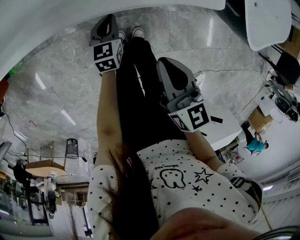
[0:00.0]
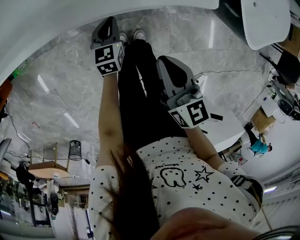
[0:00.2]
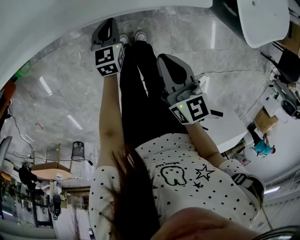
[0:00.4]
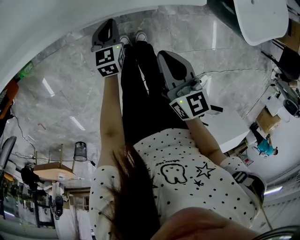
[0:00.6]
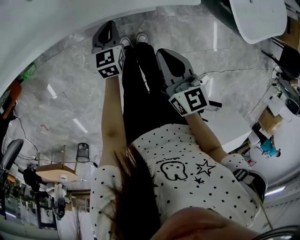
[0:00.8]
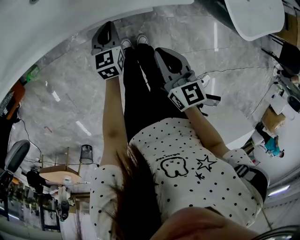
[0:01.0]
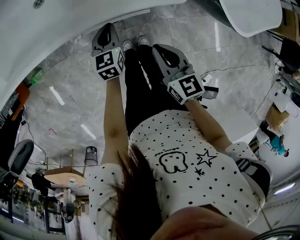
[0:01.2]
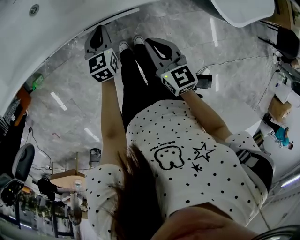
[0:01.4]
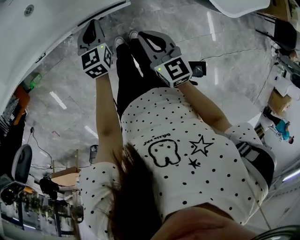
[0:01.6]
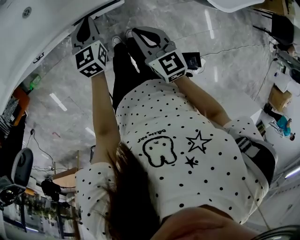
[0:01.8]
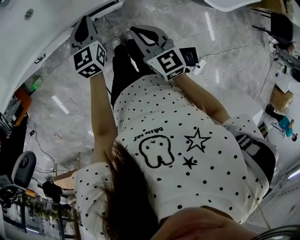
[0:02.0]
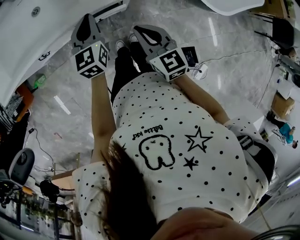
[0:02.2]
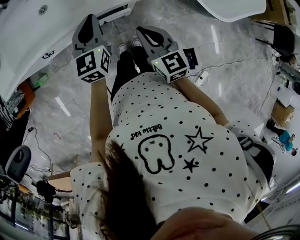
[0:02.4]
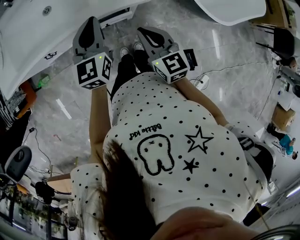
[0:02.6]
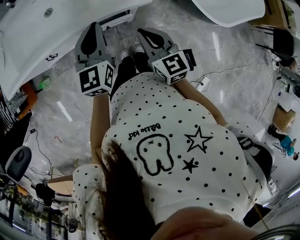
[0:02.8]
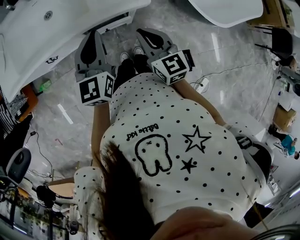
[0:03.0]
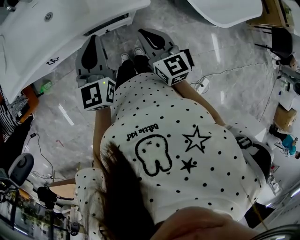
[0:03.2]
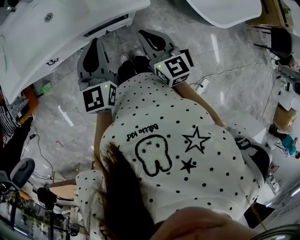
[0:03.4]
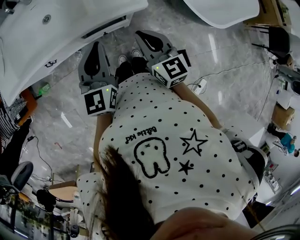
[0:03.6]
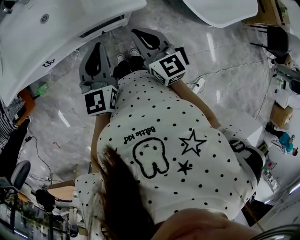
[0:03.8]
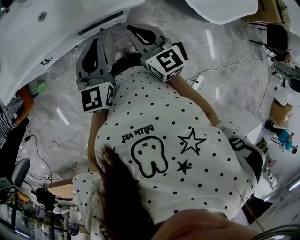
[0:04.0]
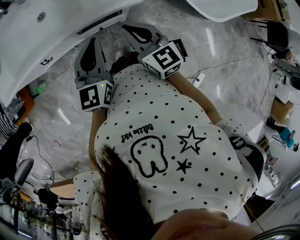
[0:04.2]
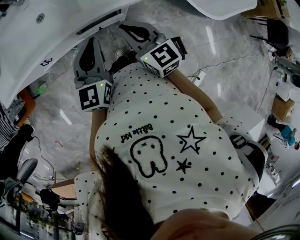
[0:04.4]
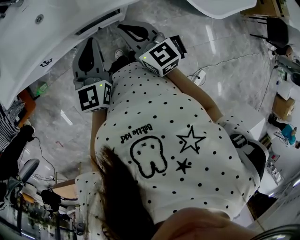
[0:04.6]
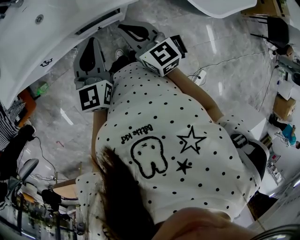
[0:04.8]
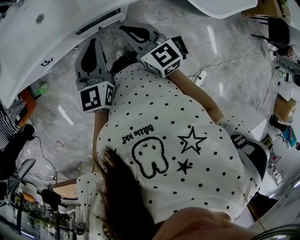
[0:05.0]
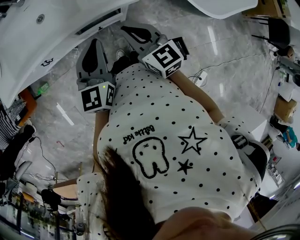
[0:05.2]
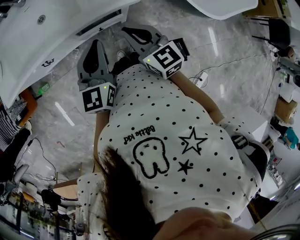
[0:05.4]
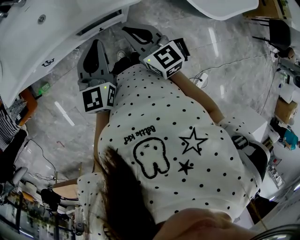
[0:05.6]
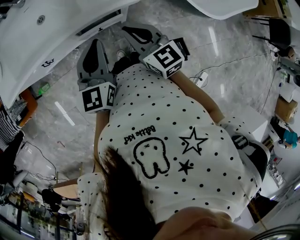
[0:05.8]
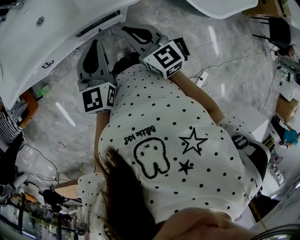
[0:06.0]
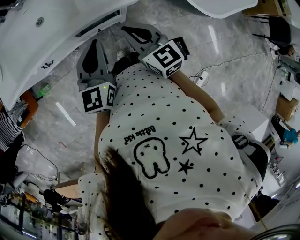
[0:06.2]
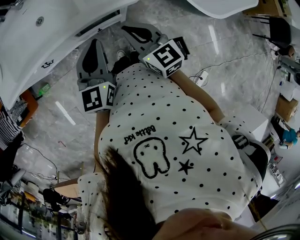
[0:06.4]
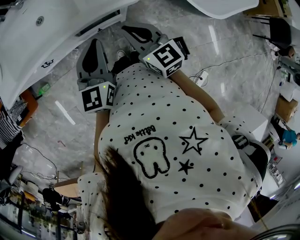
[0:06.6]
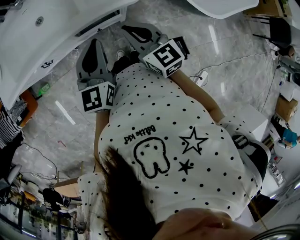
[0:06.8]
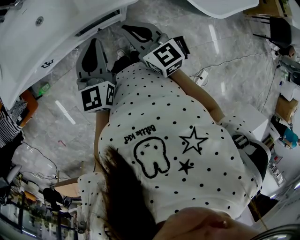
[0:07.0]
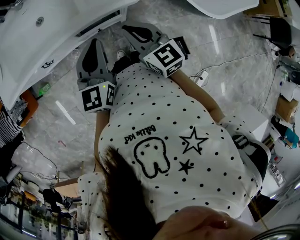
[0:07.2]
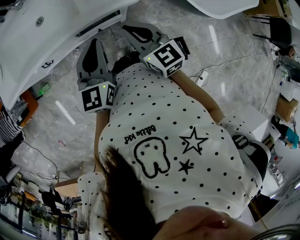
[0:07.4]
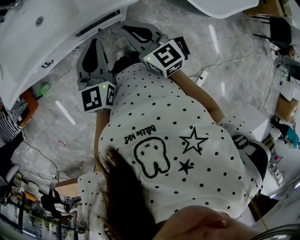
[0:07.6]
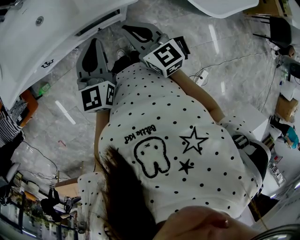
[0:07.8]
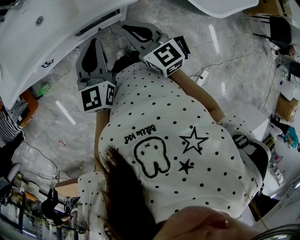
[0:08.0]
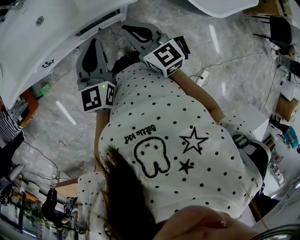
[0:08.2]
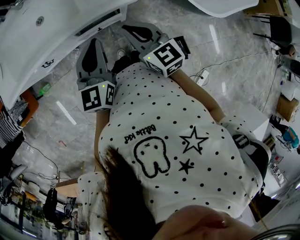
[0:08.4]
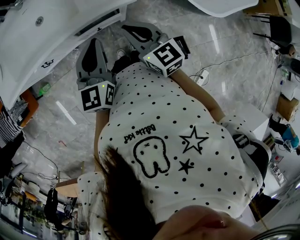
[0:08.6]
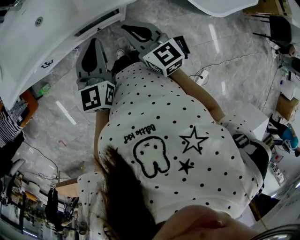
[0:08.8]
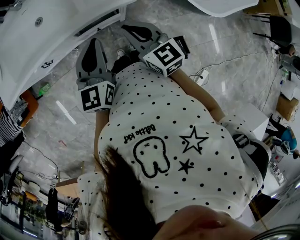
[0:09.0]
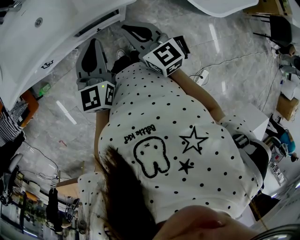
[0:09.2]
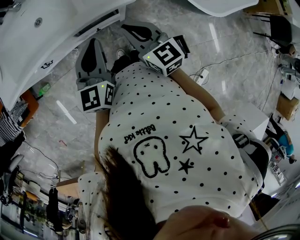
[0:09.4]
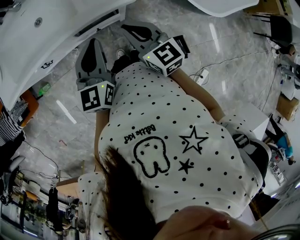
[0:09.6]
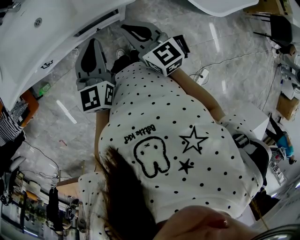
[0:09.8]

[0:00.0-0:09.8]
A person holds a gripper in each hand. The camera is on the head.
0:00.0 to 0:01.4: The left gripper goes approximately 20 cm upward. Meanwhile the right gripper travels upward by some 5 cm.
0:01.4 to 0:02.8: The left gripper is displaced upward by some 25 cm, and swivels some 20 degrees. The right gripper is displaced upward by approximately 10 cm.
0:02.8 to 0:04.2: The grippers make only small movements.
0:04.2 to 0:09.8: Both grippers stay about where they are.

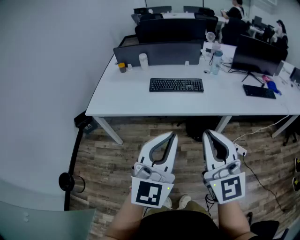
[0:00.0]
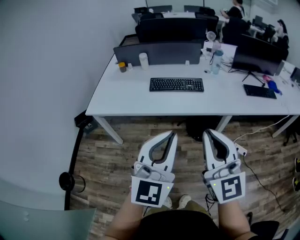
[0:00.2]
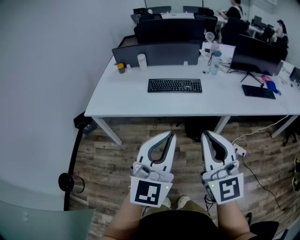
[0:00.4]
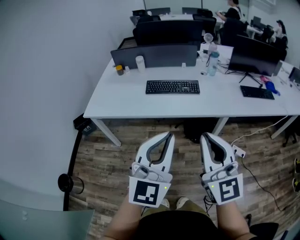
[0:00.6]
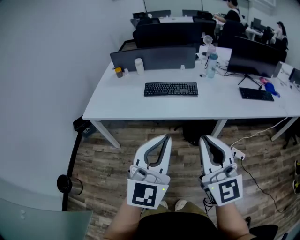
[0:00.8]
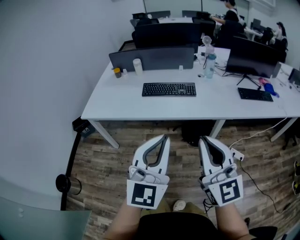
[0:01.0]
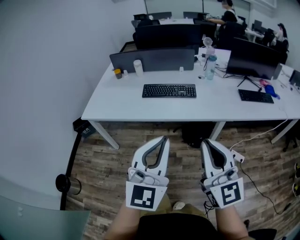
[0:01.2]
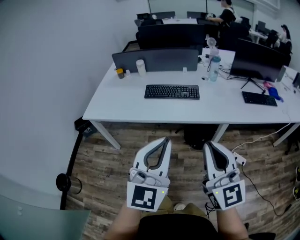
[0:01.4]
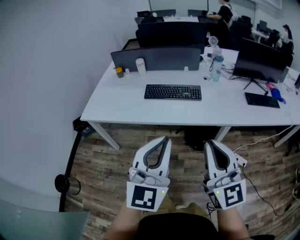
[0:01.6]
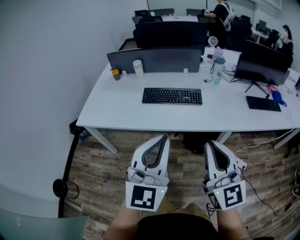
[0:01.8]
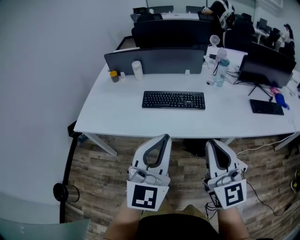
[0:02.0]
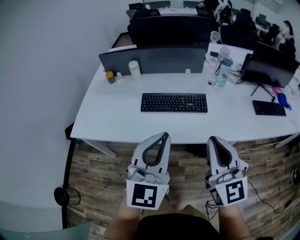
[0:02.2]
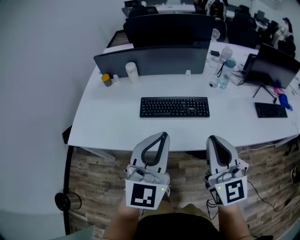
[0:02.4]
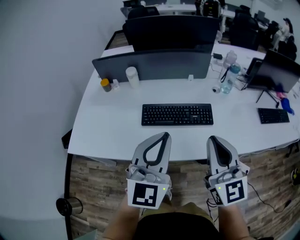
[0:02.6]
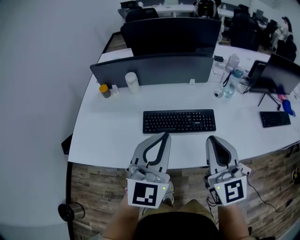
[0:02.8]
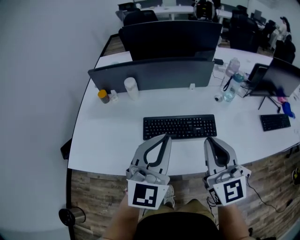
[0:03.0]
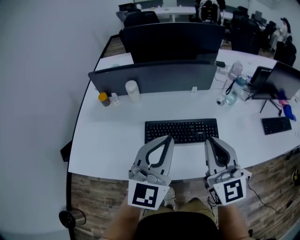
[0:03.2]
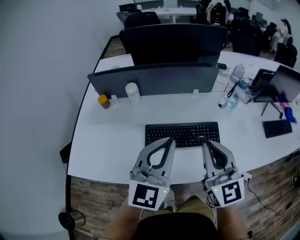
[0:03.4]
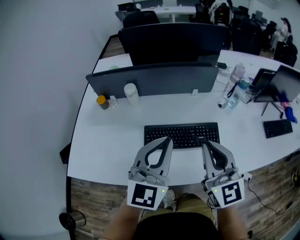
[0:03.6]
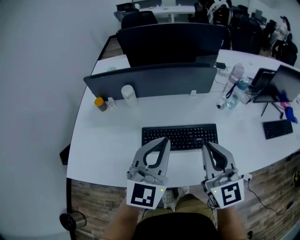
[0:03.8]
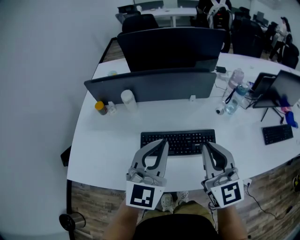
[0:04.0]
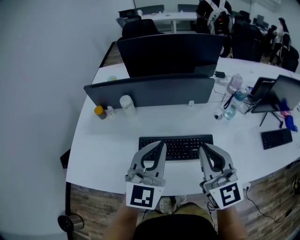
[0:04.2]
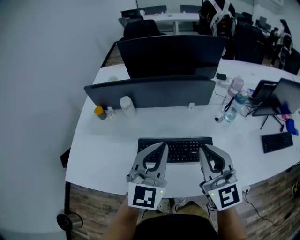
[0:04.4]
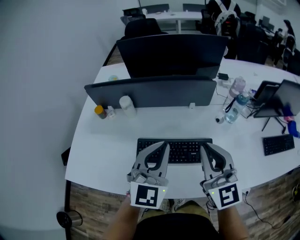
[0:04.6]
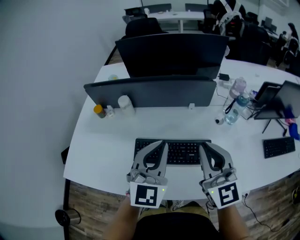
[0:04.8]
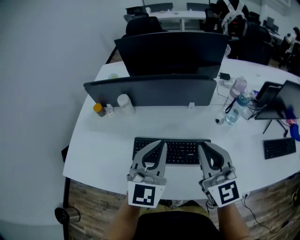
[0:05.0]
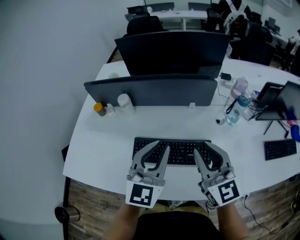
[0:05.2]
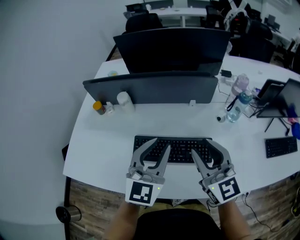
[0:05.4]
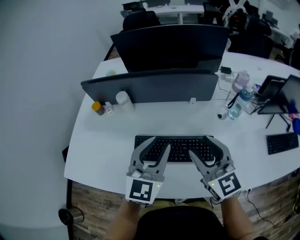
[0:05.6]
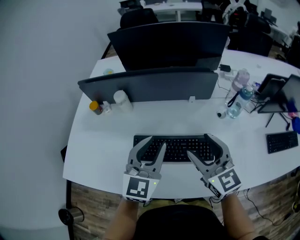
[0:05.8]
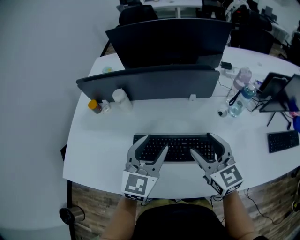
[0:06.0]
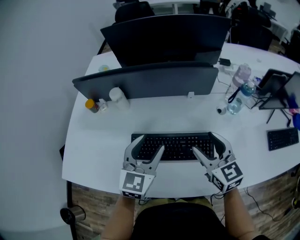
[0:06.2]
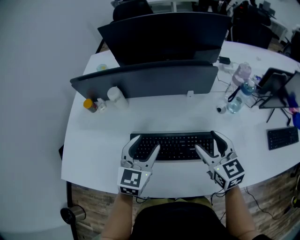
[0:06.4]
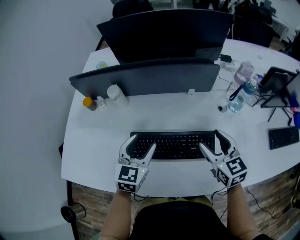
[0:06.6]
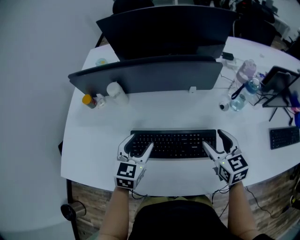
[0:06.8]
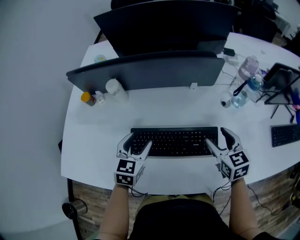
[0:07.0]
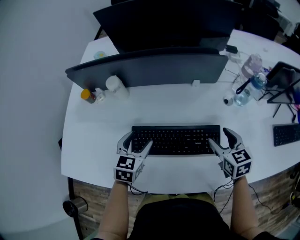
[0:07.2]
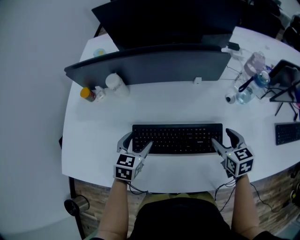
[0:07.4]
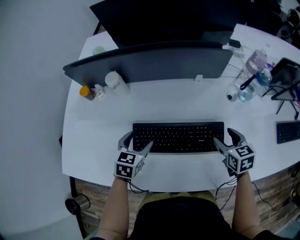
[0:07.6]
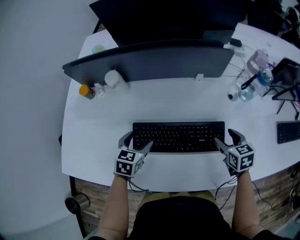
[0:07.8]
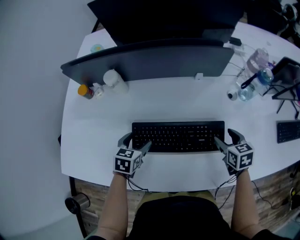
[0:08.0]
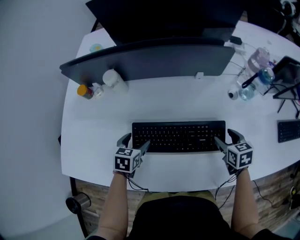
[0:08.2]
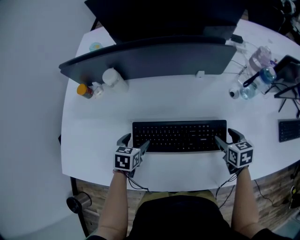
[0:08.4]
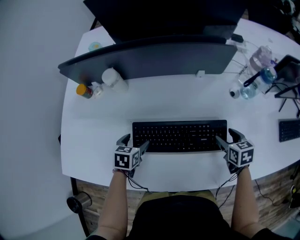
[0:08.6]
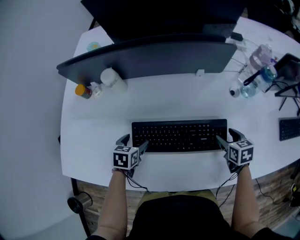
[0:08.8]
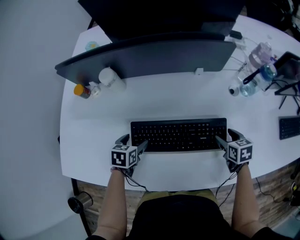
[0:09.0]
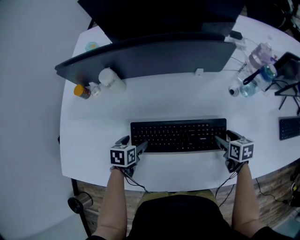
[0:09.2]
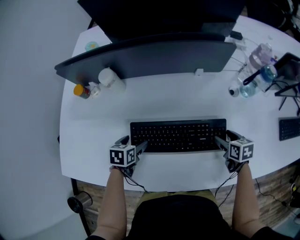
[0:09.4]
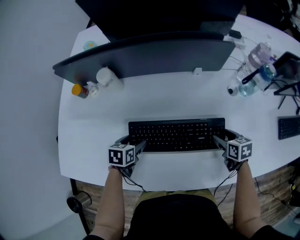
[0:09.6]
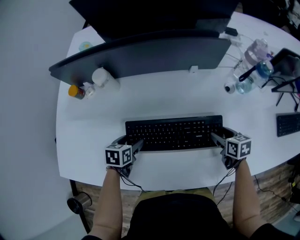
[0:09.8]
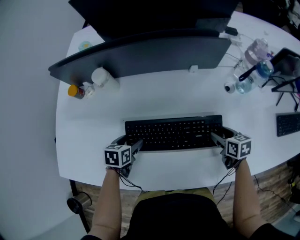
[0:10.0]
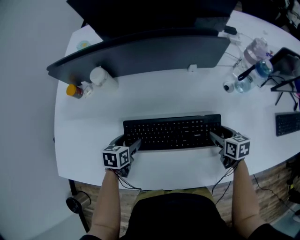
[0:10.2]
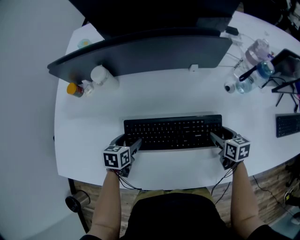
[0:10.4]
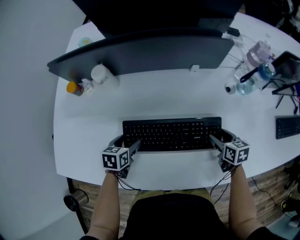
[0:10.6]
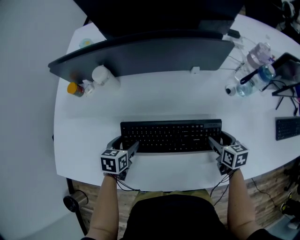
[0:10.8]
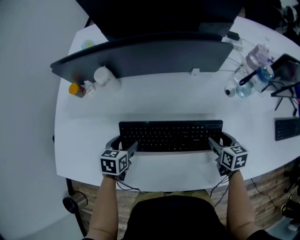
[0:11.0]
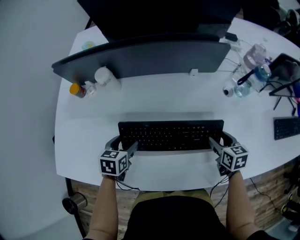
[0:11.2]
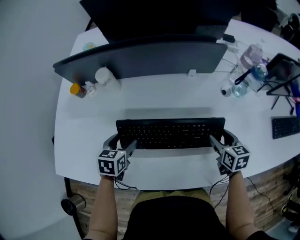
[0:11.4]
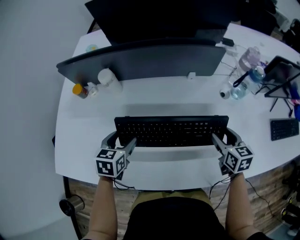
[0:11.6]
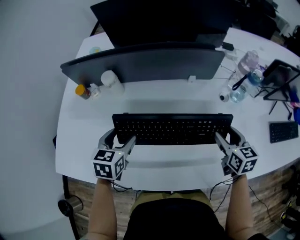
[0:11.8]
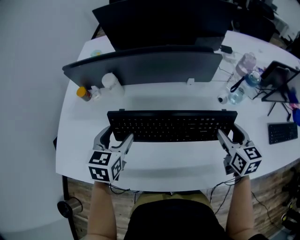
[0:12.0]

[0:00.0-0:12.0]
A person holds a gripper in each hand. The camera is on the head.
0:00.0 to 0:01.6: The right gripper shifts about 10 cm to the right and forward; the left gripper is displaced forward by some 5 cm.
0:01.6 to 0:03.0: Both grippers move forward, about 40 cm.
0:03.0 to 0:04.4: Both grippers move forward, approximately 10 cm.
0:04.4 to 0:06.0: Both grippers move downward and forward, about 10 cm. The right gripper changes its angle by approximately 20 degrees, and opens, while the left gripper opens up.
0:06.0 to 0:07.6: The left gripper shifts about 20 cm downward and to the left, and angles its fingers downward, by approximately 30 degrees. Meanwhile the right gripper shifts roughly 20 cm downward and to the right, and tips its fingers downward by some 30 degrees.
0:07.6 to 0:09.0: The two grippers go some 10 cm downward. The left gripper changes its angle by roughly 20 degrees.
0:09.0 to 0:10.4: The grippers make only small movements.
0:10.4 to 0:12.0: The two grippers go approximately 20 cm upward. The left gripper rotates approximately 30 degrees. The right gripper changes its angle by about 30 degrees.

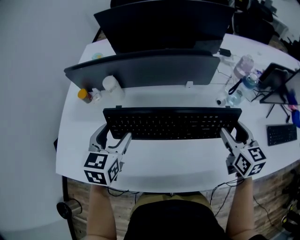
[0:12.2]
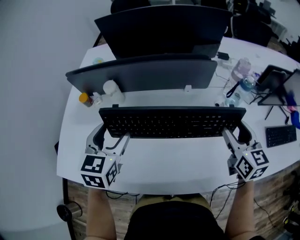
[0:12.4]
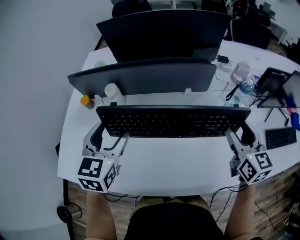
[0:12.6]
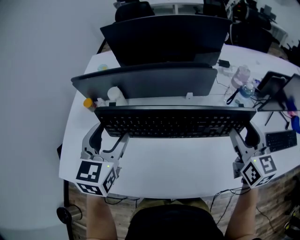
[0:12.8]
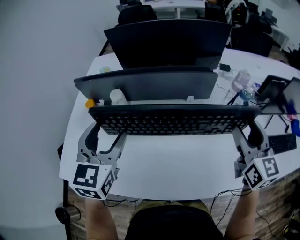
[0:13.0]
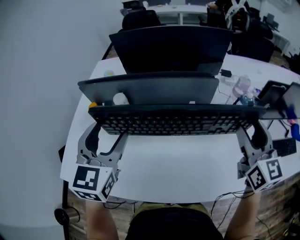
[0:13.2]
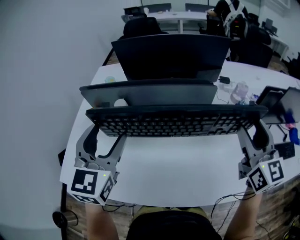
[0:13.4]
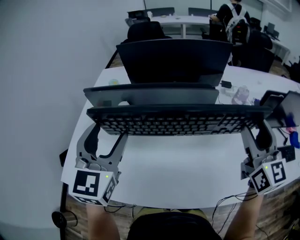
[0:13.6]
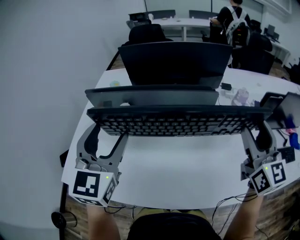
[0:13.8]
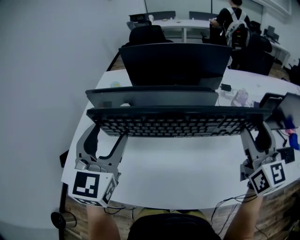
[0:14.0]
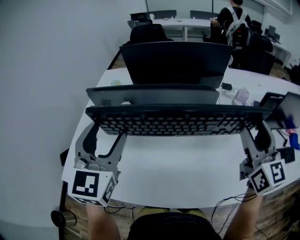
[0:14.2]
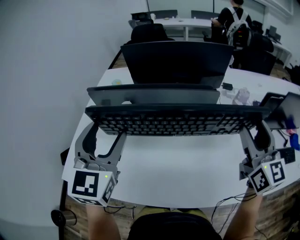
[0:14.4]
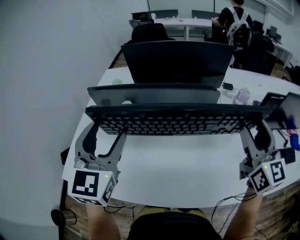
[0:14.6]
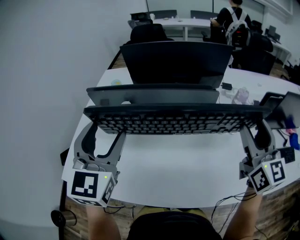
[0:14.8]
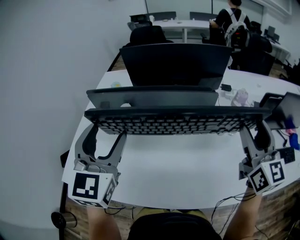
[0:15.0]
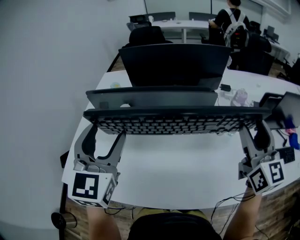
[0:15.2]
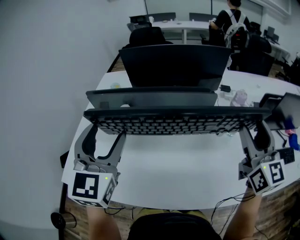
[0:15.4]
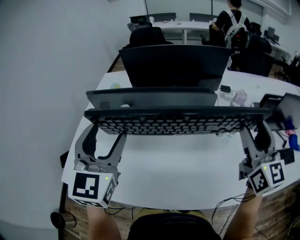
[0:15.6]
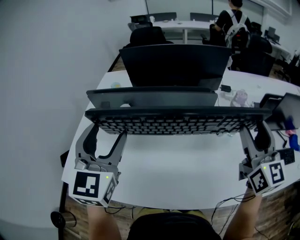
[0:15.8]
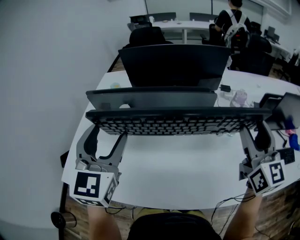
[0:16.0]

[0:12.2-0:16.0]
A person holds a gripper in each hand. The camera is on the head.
0:12.2 to 0:13.4: Both grippers travel together upward, approximately 20 cm. The left gripper rotates roughly 20 degrees. Meanwhile the right gripper swivels approximately 30 degrees.
0:13.4 to 0:14.8: There are only small adjustments of the grippers.
0:14.8 to 0:16.0: Neither gripper changes place.
